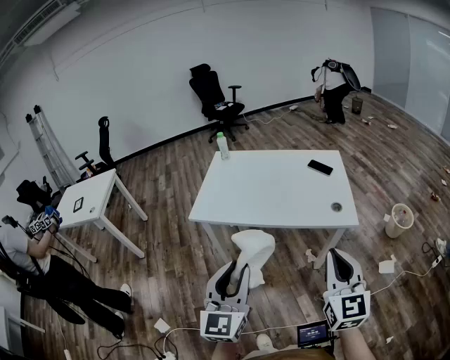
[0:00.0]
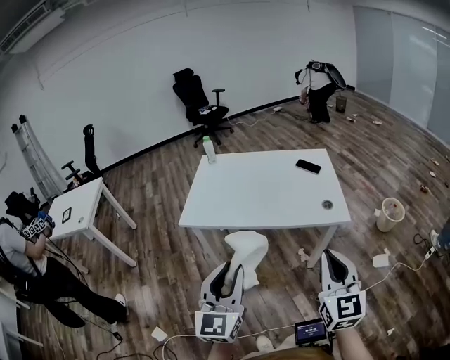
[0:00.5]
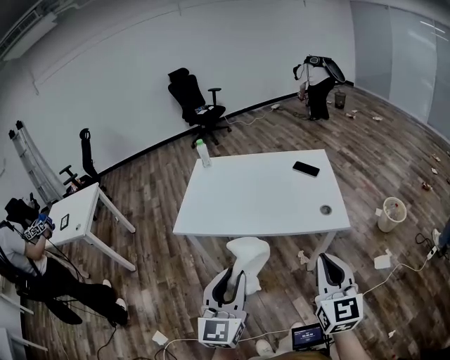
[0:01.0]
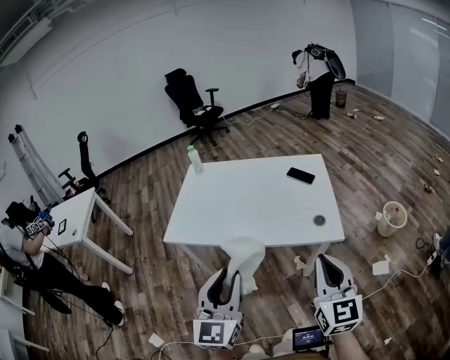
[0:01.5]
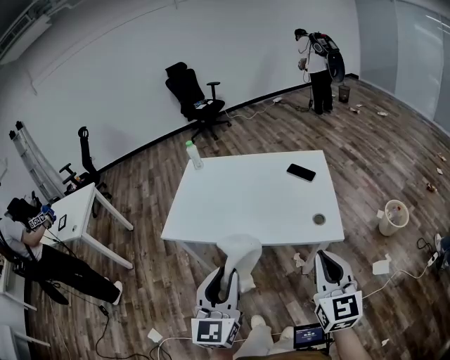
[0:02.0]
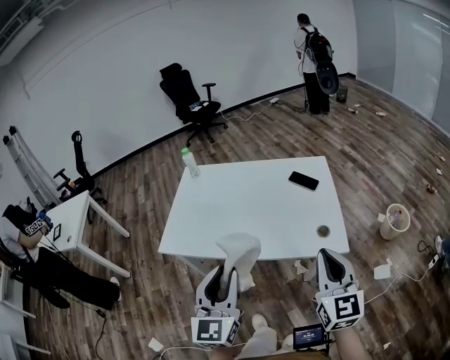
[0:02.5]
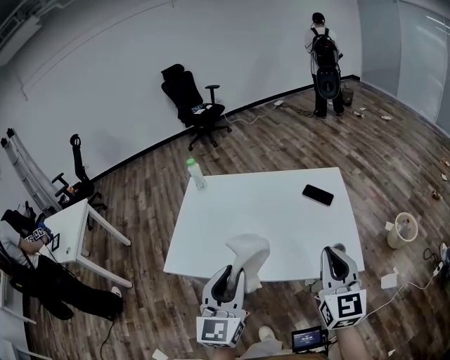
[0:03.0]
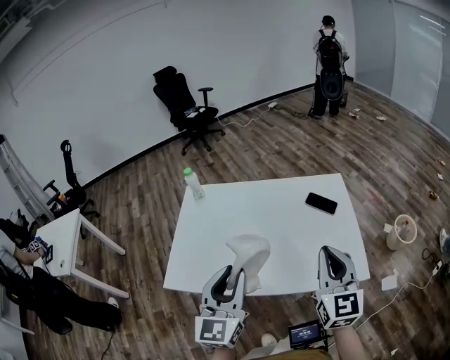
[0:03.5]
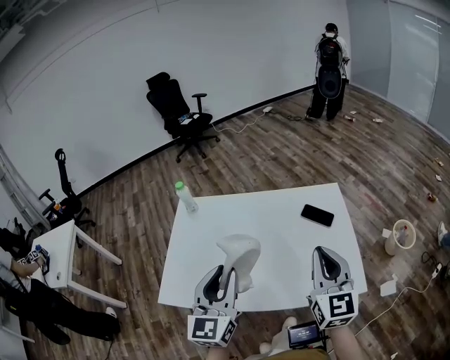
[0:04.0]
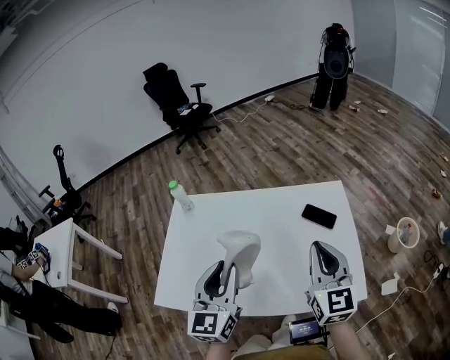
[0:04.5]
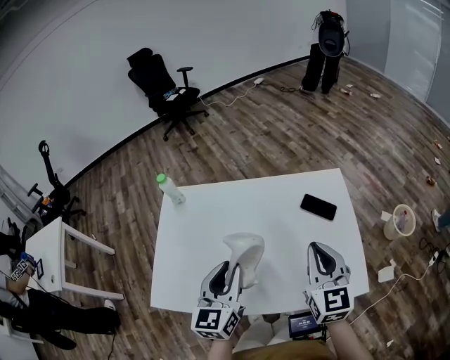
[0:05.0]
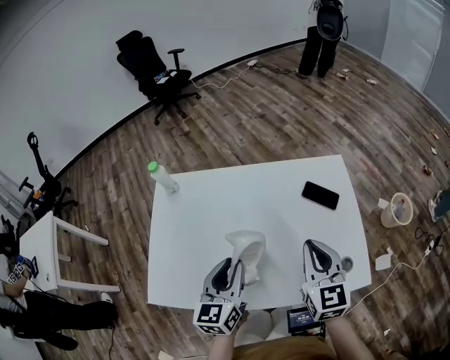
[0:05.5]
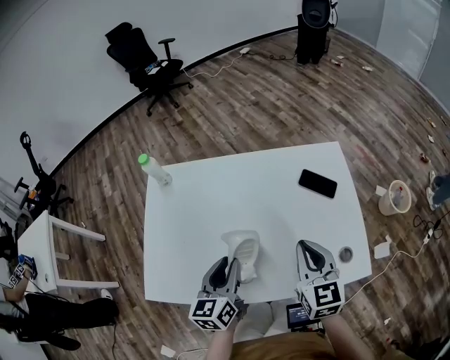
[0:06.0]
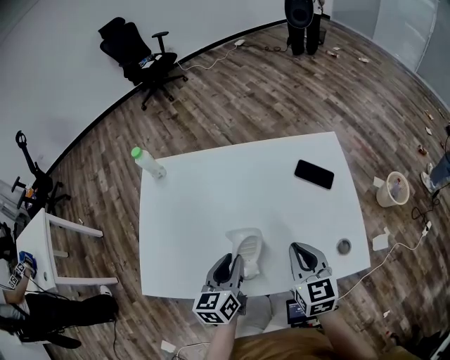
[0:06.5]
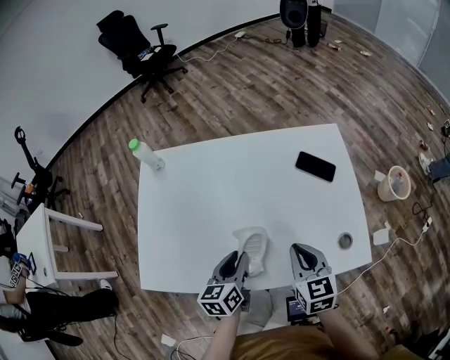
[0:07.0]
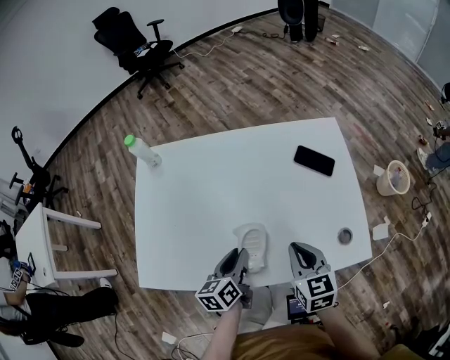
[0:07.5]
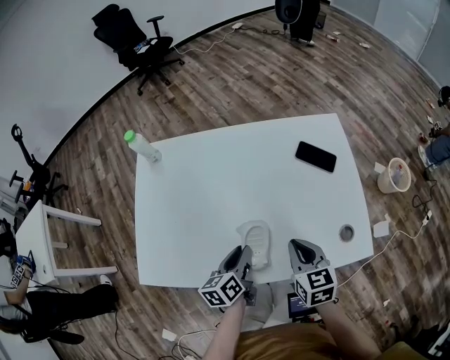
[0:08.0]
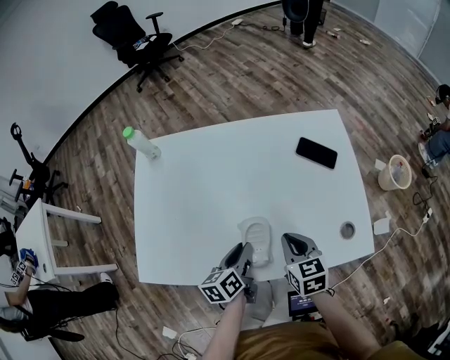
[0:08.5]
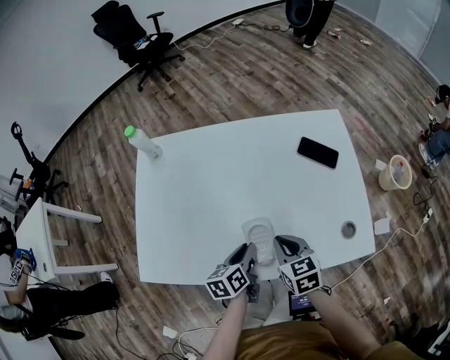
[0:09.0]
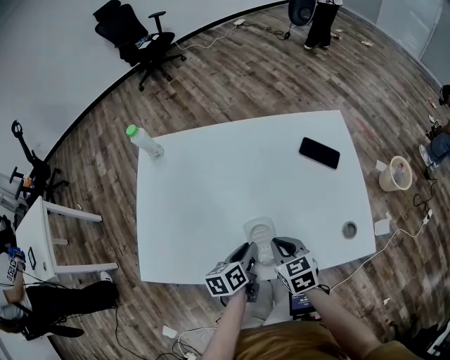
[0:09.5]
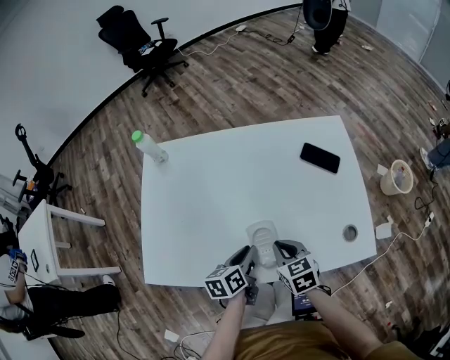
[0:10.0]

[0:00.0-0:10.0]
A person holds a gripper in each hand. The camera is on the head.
0:00.0 to 0:02.0: Both grippers travel together forward and to the right, some 15 cm.
0:02.0 to 0:04.0: Both grippers move forward, approximately 30 cm.
0:04.0 to 0:06.0: The two grippers go approximately 20 cm downward and forward. The left gripper rotates roughly 30 degrees.
0:06.0 to 0:08.0: The two grippers go approximately 10 cm downward. The left gripper turns by some 20 degrees.
0:08.0 to 0:10.0: The right gripper shifts approximately 10 cm to the left and downward.

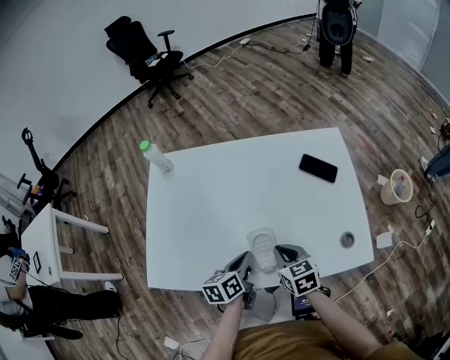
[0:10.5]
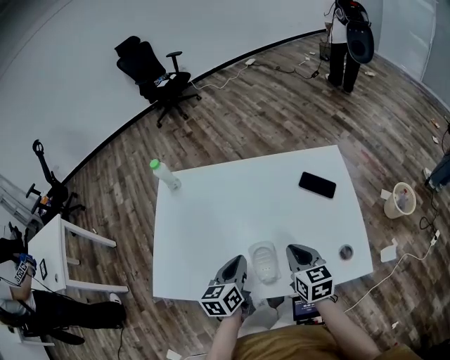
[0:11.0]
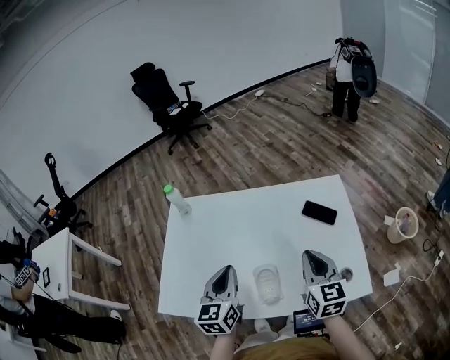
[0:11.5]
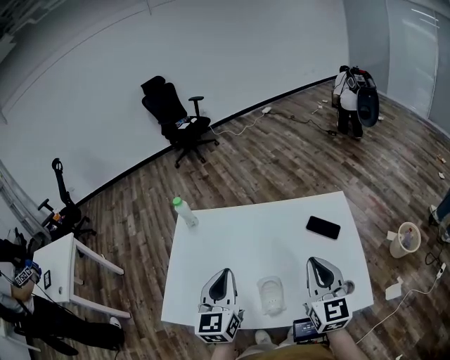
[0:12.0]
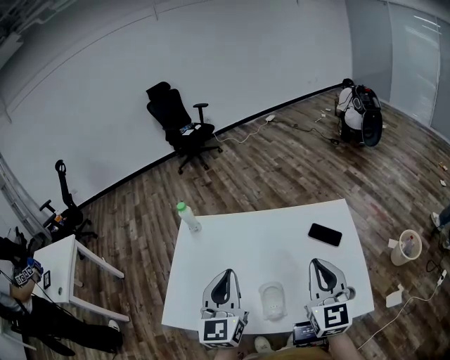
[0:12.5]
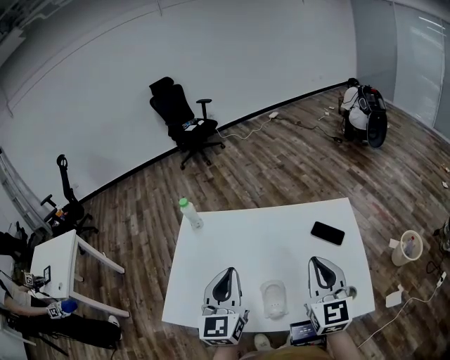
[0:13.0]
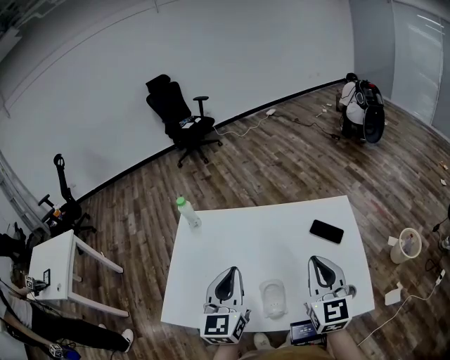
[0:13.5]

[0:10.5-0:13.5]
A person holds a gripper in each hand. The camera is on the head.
0:10.5 to 0:12.0: Both grippers travel together upward, some 25 cm. The right gripper points its fingers some 40 degrees further upward; the left gripper turns by some 50 degrees.
0:12.0 to 0:13.5: The grippers stay close to where they were, moving slightly.

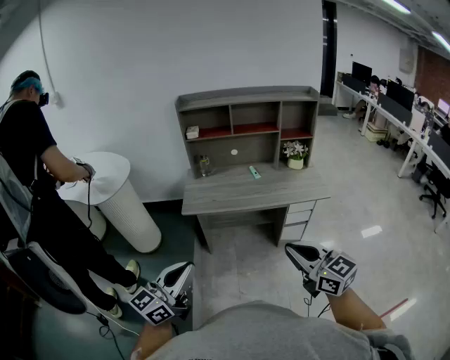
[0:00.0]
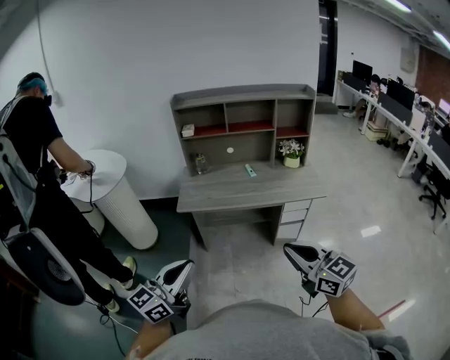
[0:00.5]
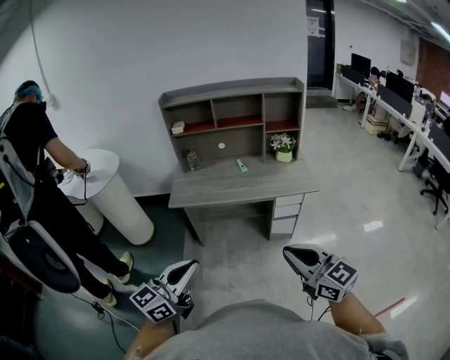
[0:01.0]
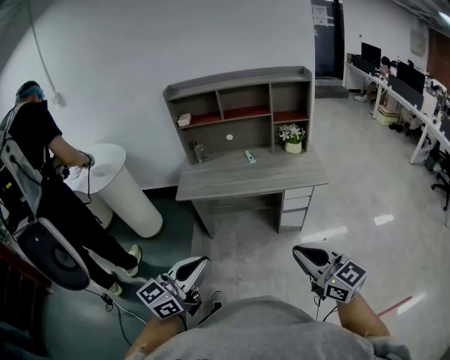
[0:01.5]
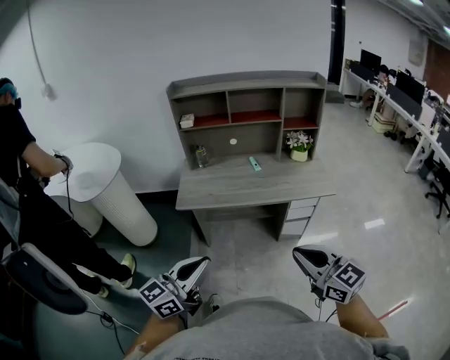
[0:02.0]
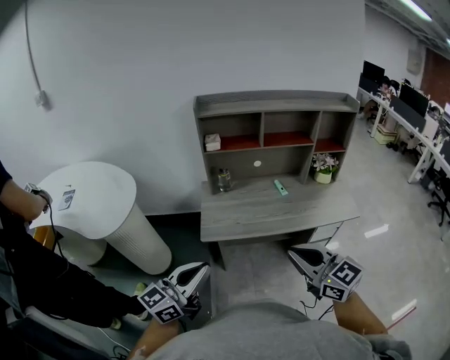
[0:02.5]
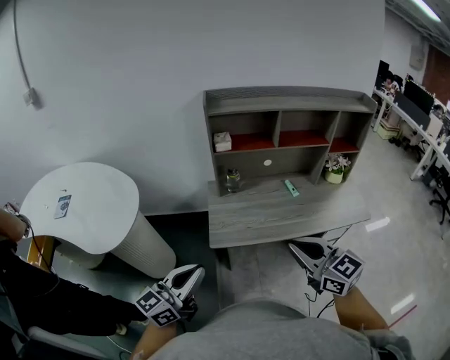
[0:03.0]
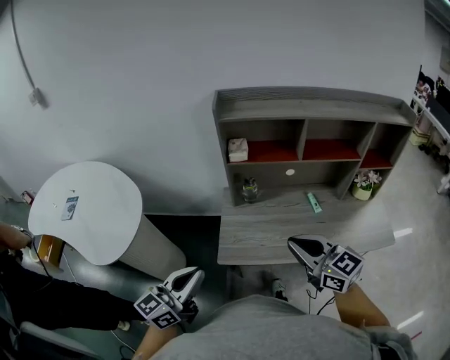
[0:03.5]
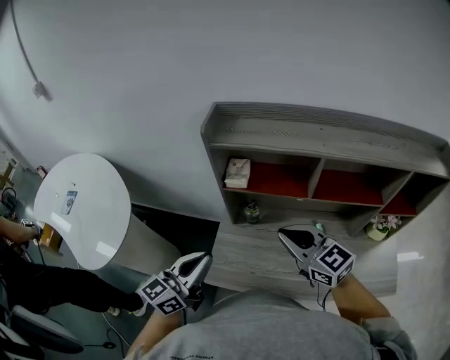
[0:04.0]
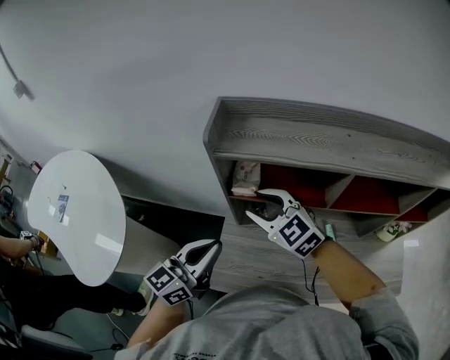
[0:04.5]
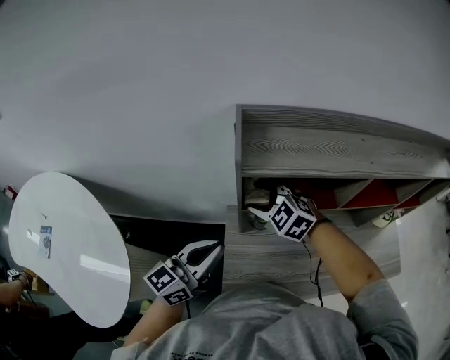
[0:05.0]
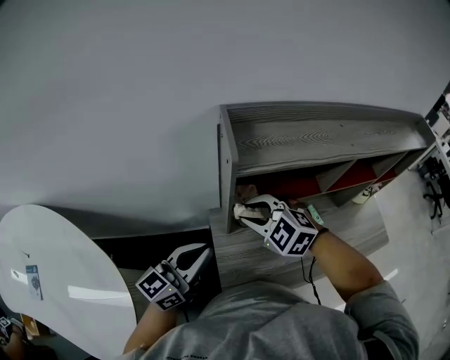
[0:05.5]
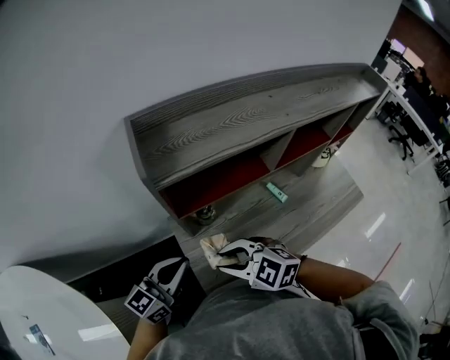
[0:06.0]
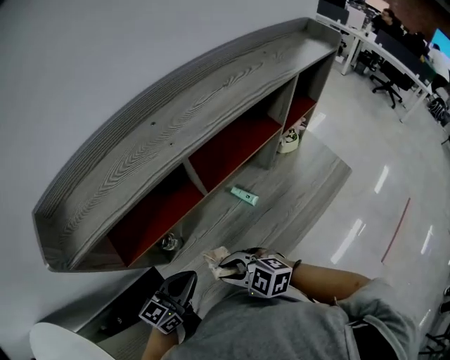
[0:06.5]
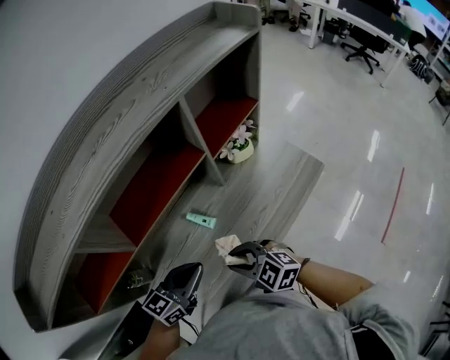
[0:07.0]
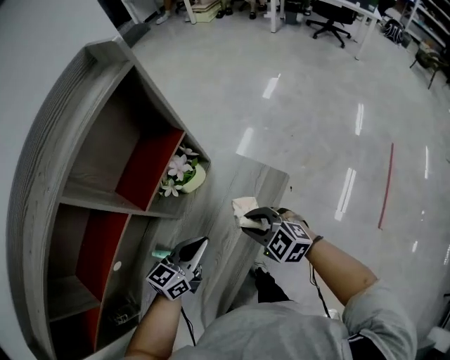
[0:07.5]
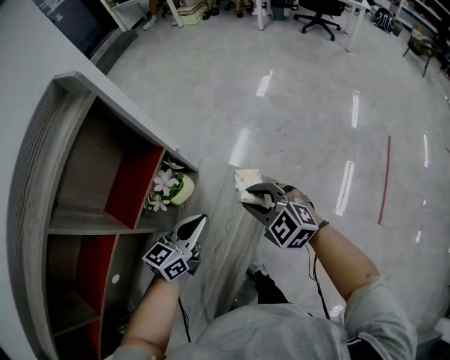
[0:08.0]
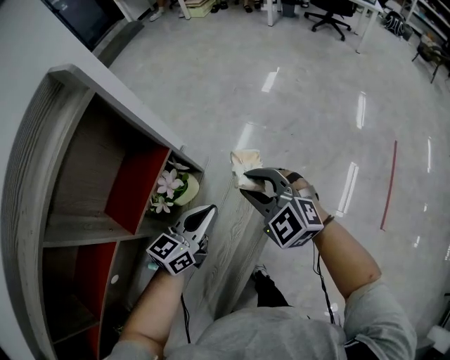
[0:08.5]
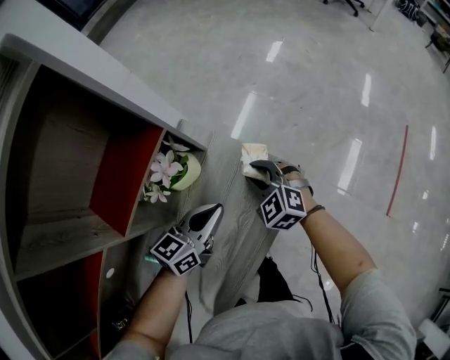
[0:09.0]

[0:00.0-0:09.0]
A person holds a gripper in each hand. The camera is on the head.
0:00.0 to 0:02.0: The left gripper travels to the right and forward by about 10 cm.
0:02.0 to 0:04.5: The pair of grippers is taken forward, approximately 70 cm. The right gripper rotates about 30 degrees, and opens.
0:04.5 to 0:07.0: The right gripper changes place by roughly 40 cm, and changes its angle by approximately 40 degrees; the left gripper ends up about 40 cm from where it was, and rotates approximately 60 degrees.
0:07.0 to 0:09.0: The pair of grippers is taken roughly 40 cm. The right gripper changes its angle by about 40 degrees.

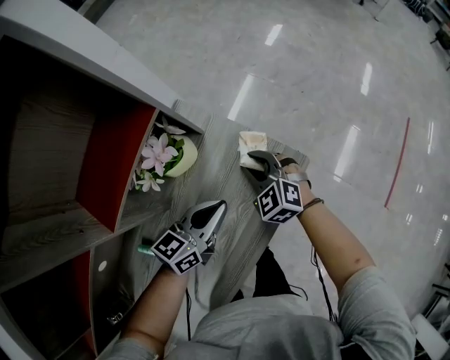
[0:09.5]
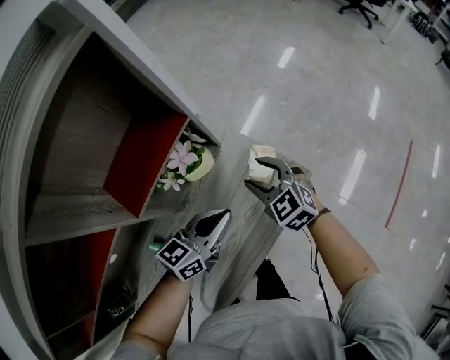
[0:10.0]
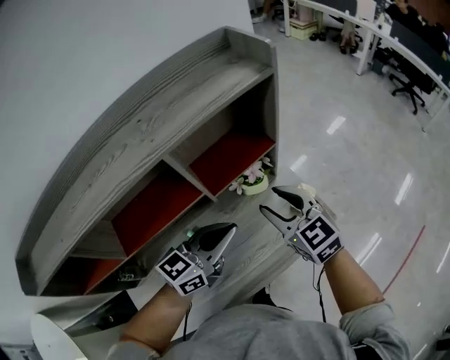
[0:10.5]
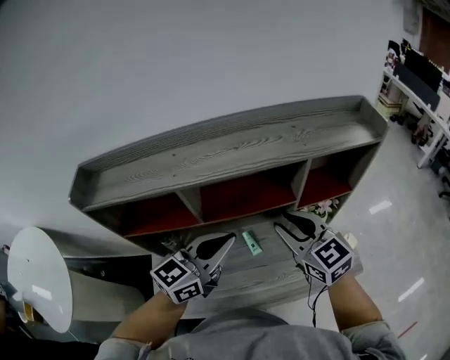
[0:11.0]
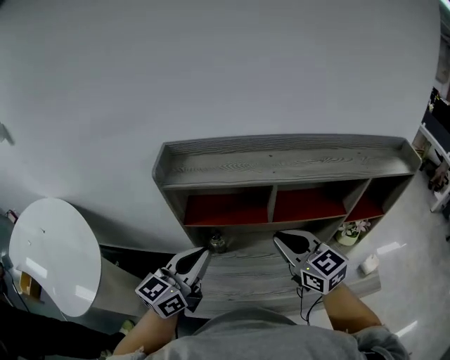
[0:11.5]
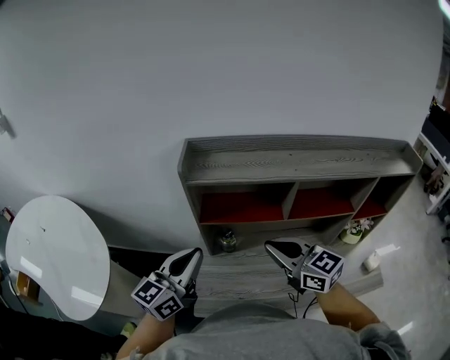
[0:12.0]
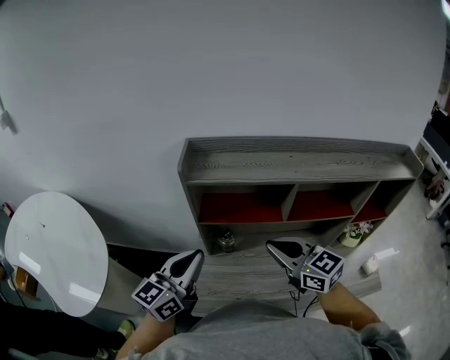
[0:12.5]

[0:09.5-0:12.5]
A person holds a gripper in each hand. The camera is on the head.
0:09.5 to 0:11.0: The two grippers go some 40 cm upward. The right gripper swivels approximately 50 degrees, and opens and closes again, while the left gripper rotates about 50 degrees.
0:11.0 to 0:12.5: The grippers both shift to the left by approximately 35 cm. The left gripper turns by about 30 degrees. Meanwhile the right gripper turns by roughly 20 degrees, and closes up.

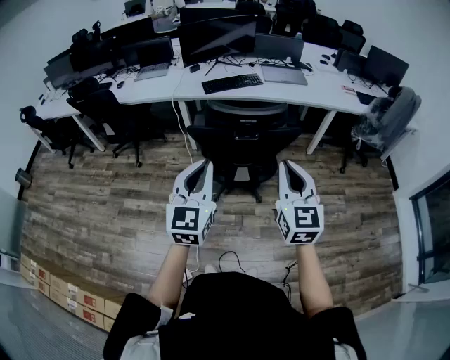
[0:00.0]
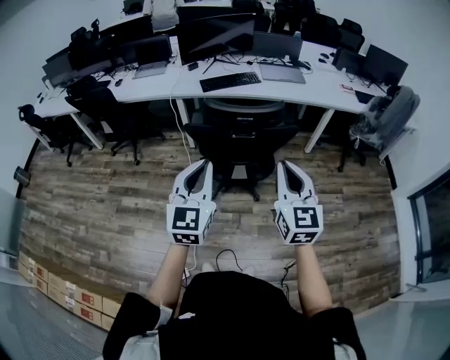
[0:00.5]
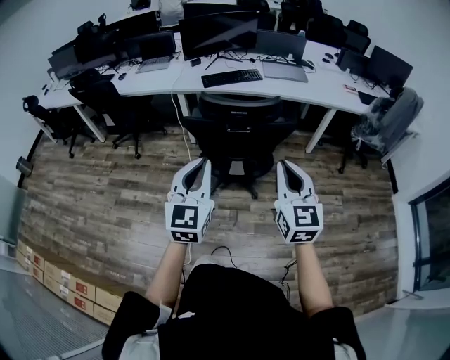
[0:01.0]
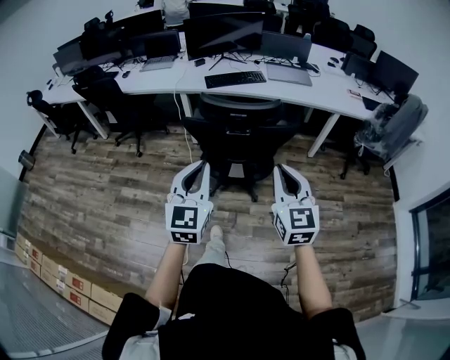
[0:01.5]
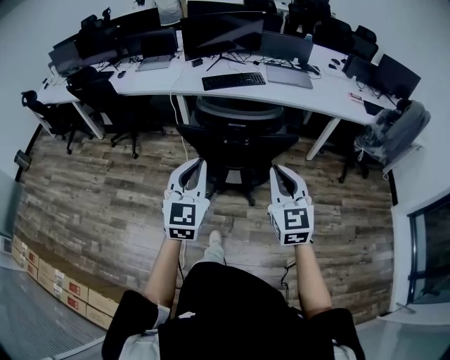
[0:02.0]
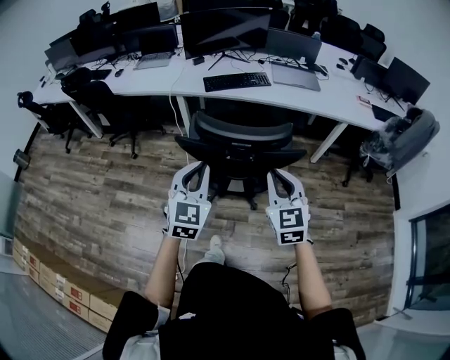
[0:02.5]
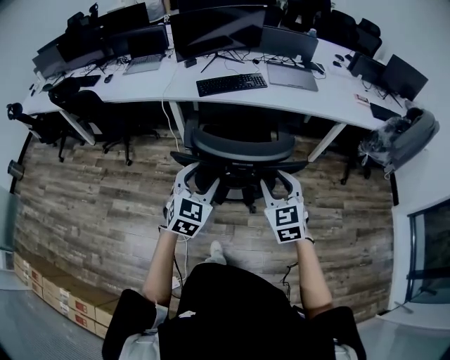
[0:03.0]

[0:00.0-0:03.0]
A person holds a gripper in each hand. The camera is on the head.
0:00.0 to 0:01.5: The left gripper ends up about 5 cm from where it was. The right gripper shifts by approximately 5 cm.
0:01.5 to 0:03.0: The two grippers go some 25 cm forward and downward. The right gripper changes its angle by approximately 20 degrees, and opens up, while the left gripper turns by approximately 30 degrees, and opens up.
